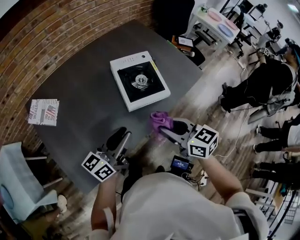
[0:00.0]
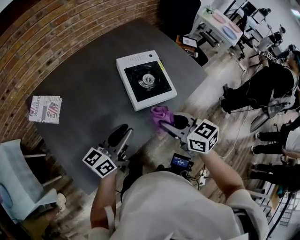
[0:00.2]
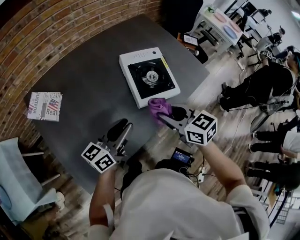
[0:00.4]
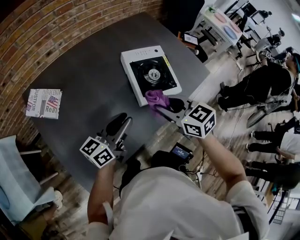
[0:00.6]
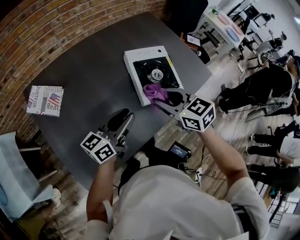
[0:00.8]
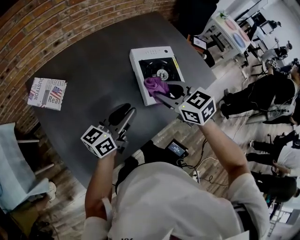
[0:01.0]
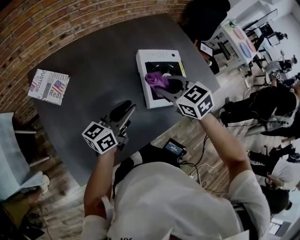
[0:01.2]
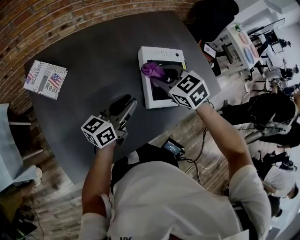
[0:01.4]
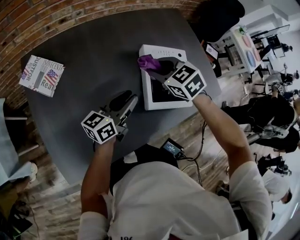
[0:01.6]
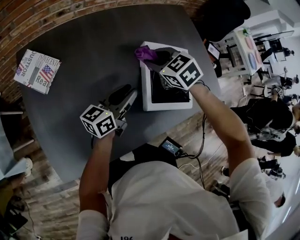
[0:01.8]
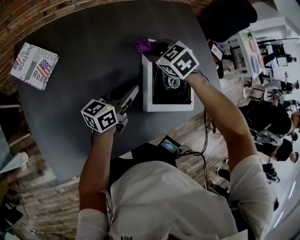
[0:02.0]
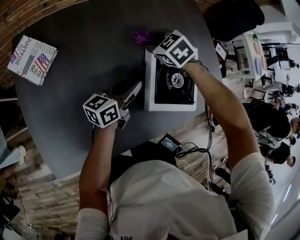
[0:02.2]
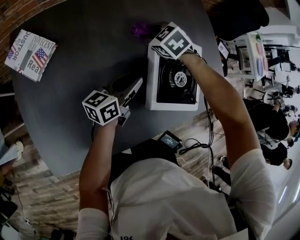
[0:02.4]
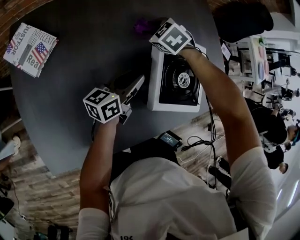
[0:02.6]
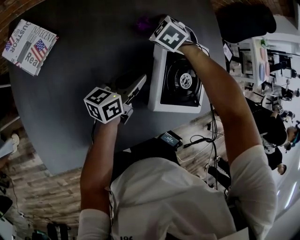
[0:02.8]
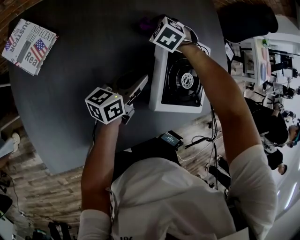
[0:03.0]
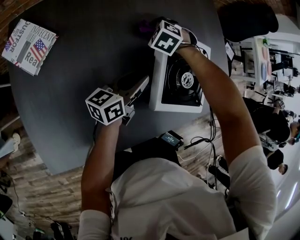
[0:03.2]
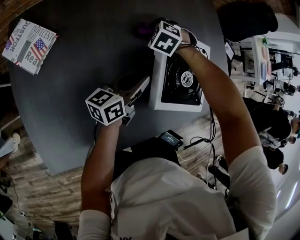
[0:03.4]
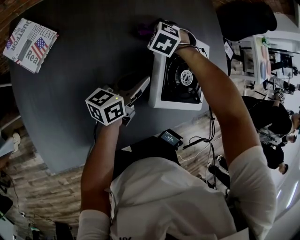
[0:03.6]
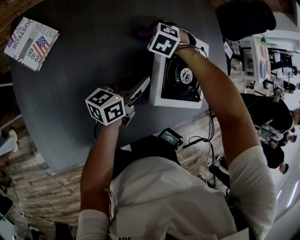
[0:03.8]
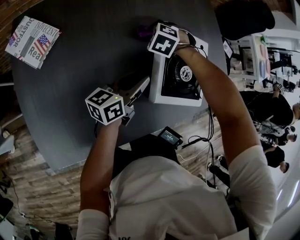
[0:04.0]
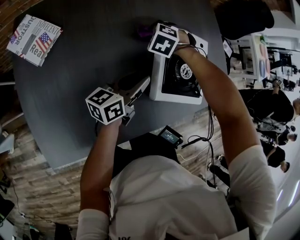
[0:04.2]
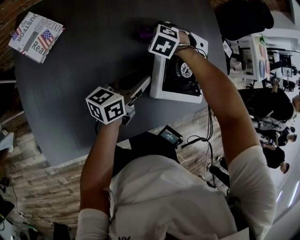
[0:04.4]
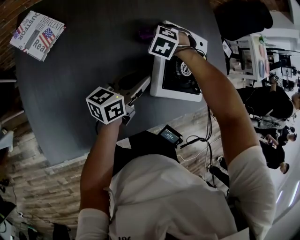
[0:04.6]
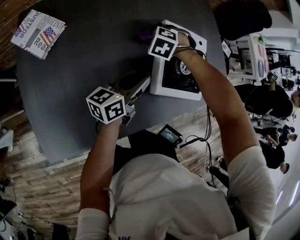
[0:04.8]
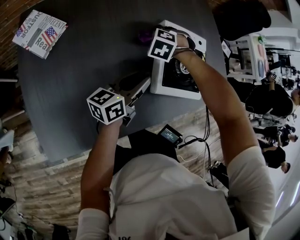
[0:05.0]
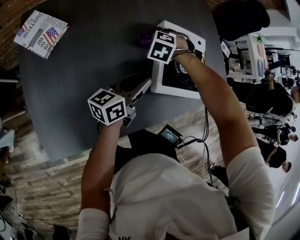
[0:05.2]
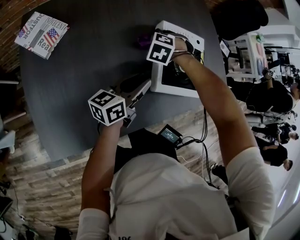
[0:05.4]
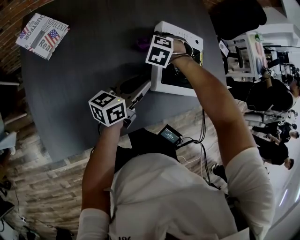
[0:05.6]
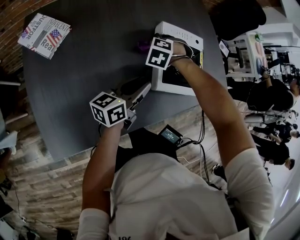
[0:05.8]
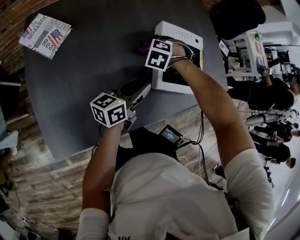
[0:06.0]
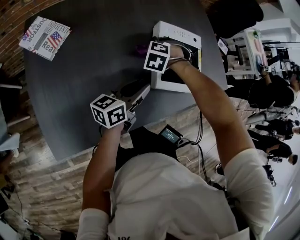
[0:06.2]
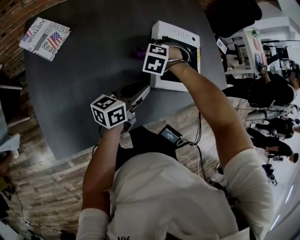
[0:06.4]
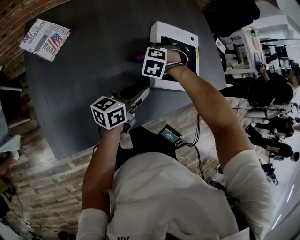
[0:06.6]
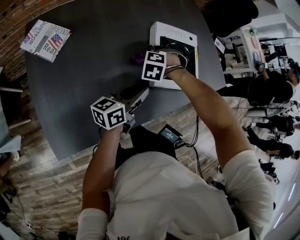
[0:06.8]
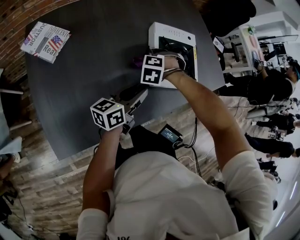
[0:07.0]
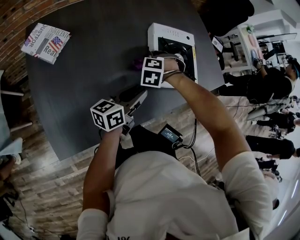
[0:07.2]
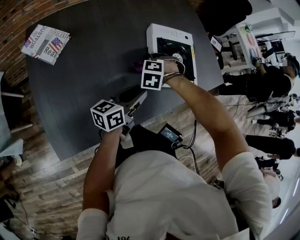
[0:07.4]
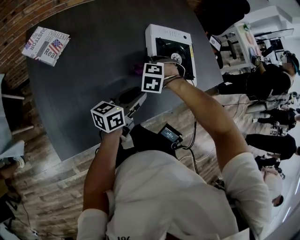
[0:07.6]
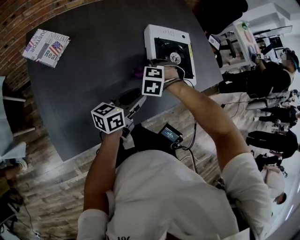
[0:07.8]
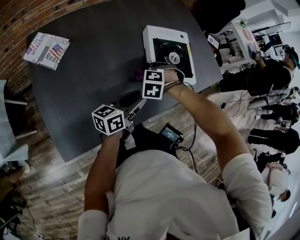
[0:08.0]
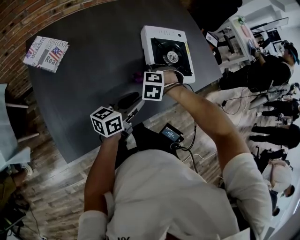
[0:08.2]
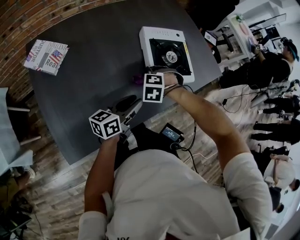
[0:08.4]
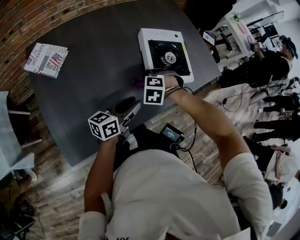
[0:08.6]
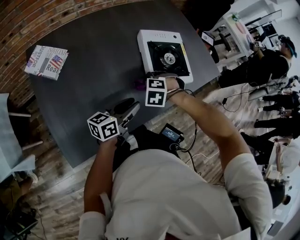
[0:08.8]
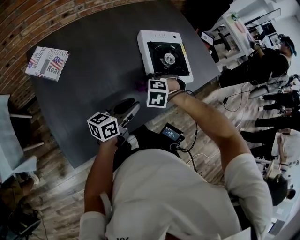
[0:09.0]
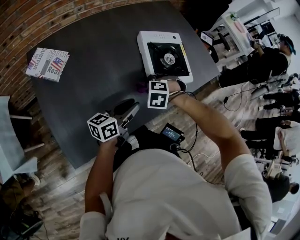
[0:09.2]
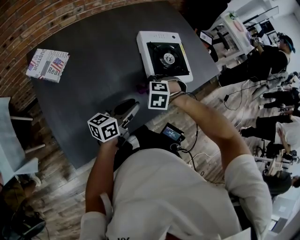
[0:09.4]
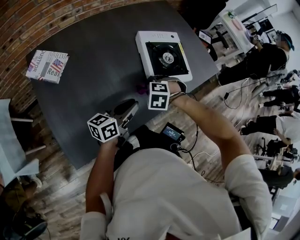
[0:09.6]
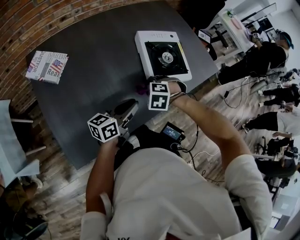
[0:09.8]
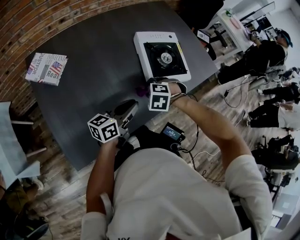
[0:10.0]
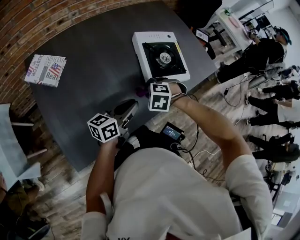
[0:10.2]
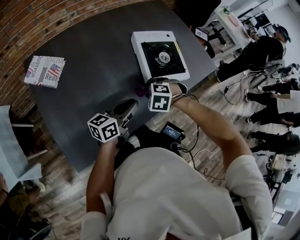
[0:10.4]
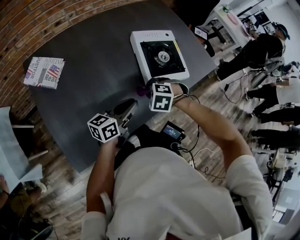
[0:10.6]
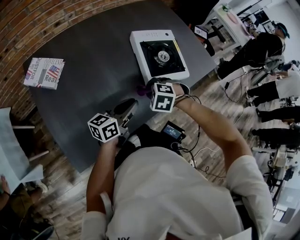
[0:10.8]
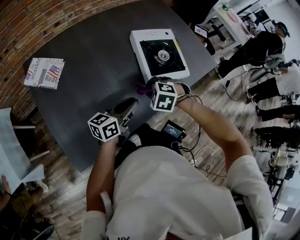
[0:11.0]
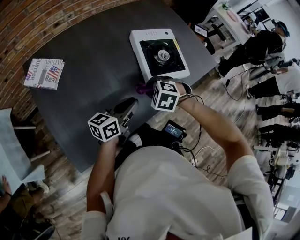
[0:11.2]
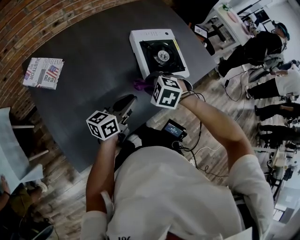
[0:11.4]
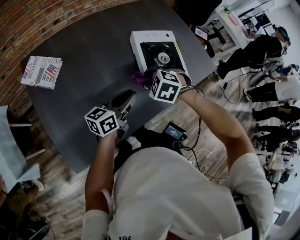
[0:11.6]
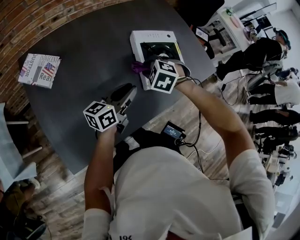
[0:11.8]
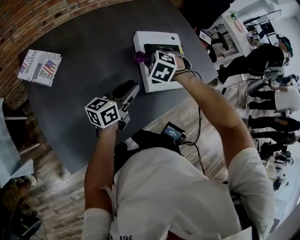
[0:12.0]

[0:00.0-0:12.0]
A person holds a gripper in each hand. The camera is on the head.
0:00.0 to 0:01.6: The right gripper travels forward and to the left by some 30 cm, and turns by some 50 degrees. The left gripper shifts approximately 20 cm forward and downward.
0:01.6 to 0:03.0: The right gripper is displaced downward and forward by some 25 cm, and swivels about 40 degrees; the left gripper heads downward and forward, covering roughly 10 cm.
0:03.0 to 0:04.4: The right gripper travels backward by some 5 cm. Meanwhile the left gripper shifts by roughly 5 cm.
0:04.4 to 0:06.0: Both grippers move backward, some 5 cm.
0:06.0 to 0:07.6: The right gripper moves backward and to the right, approximately 10 cm, while the left gripper moves about 5 cm.
0:07.6 to 0:09.0: The right gripper shifts by approximately 10 cm.
0:09.0 to 0:10.4: The grippers move only a little.
0:10.4 to 0:12.0: The right gripper moves some 15 cm, while the left gripper changes place by about 10 cm.

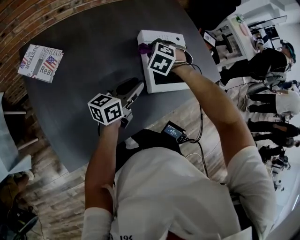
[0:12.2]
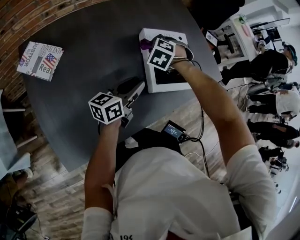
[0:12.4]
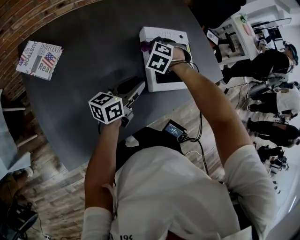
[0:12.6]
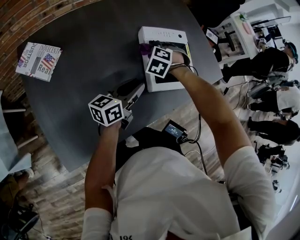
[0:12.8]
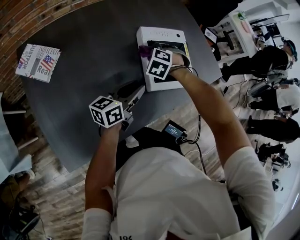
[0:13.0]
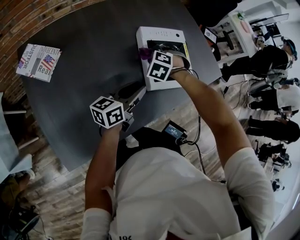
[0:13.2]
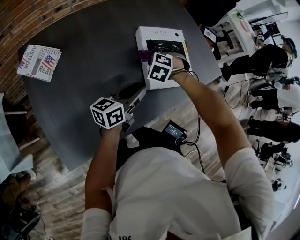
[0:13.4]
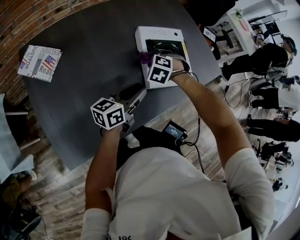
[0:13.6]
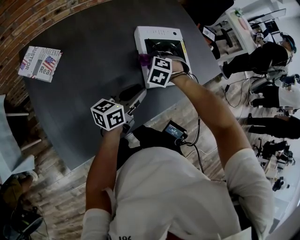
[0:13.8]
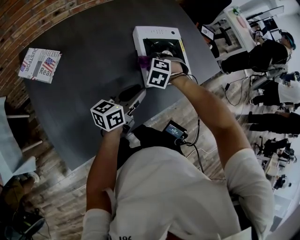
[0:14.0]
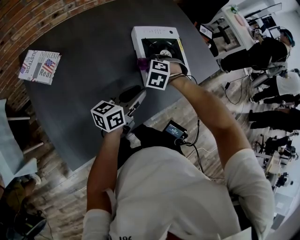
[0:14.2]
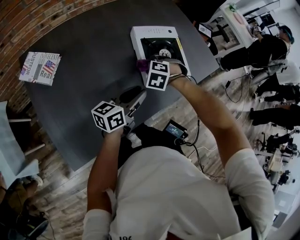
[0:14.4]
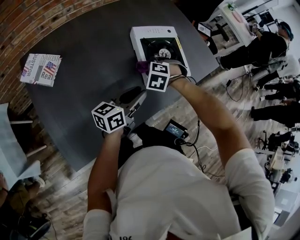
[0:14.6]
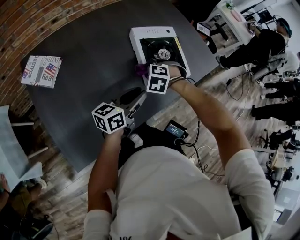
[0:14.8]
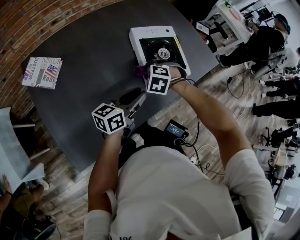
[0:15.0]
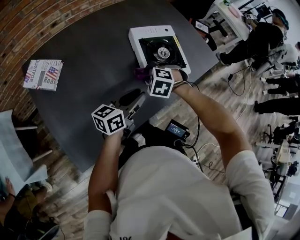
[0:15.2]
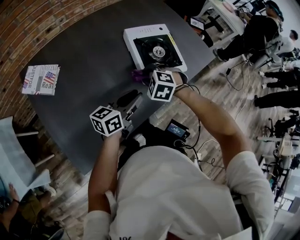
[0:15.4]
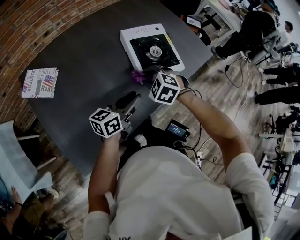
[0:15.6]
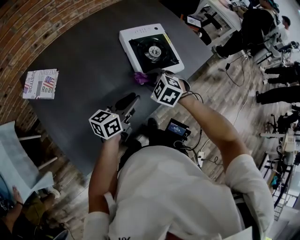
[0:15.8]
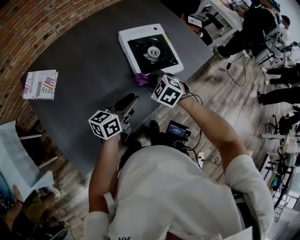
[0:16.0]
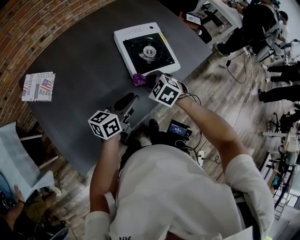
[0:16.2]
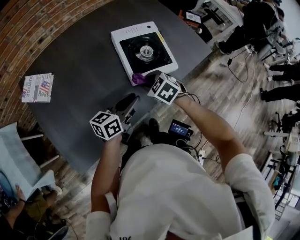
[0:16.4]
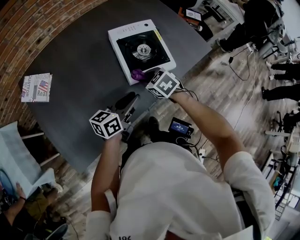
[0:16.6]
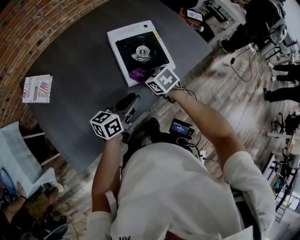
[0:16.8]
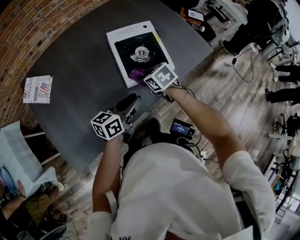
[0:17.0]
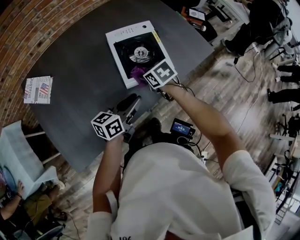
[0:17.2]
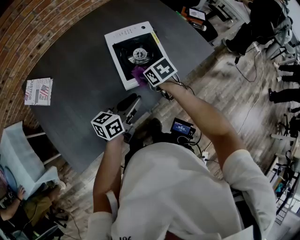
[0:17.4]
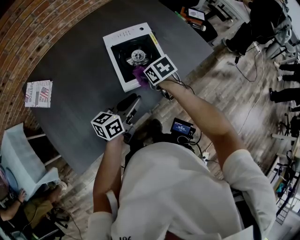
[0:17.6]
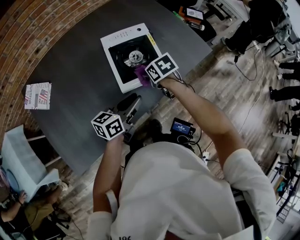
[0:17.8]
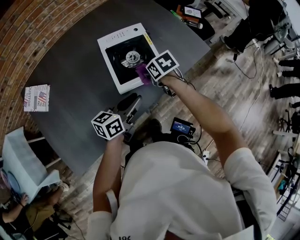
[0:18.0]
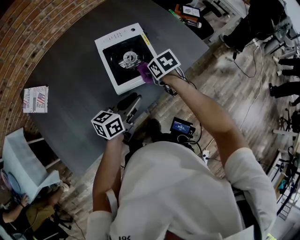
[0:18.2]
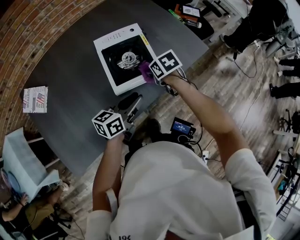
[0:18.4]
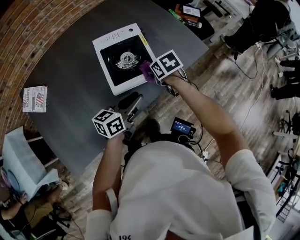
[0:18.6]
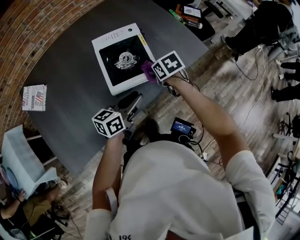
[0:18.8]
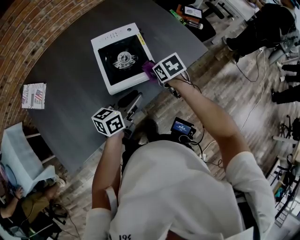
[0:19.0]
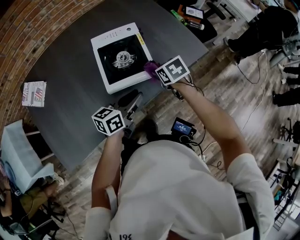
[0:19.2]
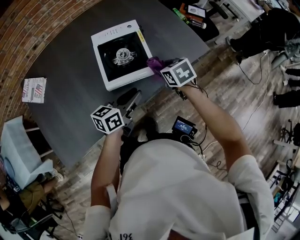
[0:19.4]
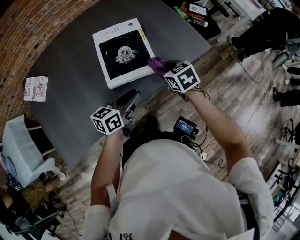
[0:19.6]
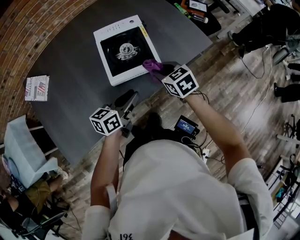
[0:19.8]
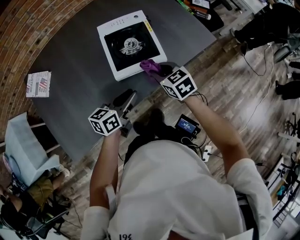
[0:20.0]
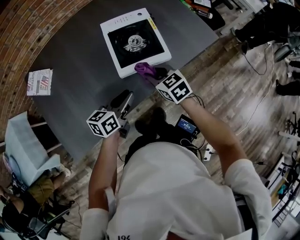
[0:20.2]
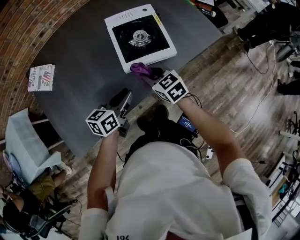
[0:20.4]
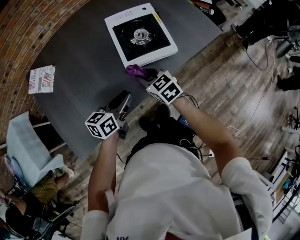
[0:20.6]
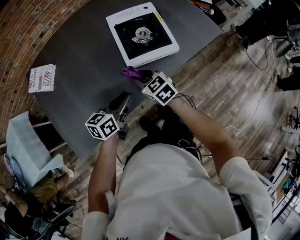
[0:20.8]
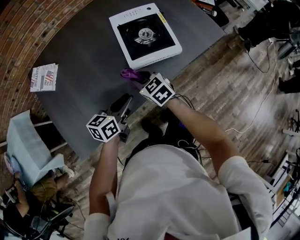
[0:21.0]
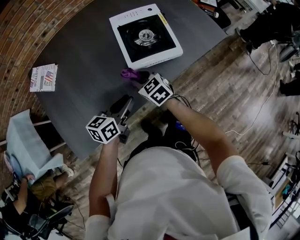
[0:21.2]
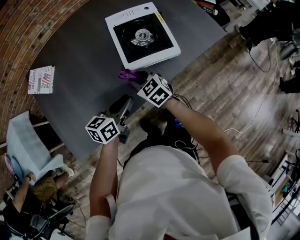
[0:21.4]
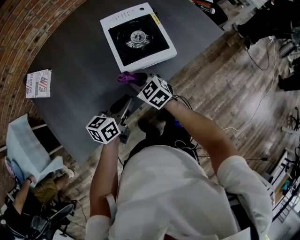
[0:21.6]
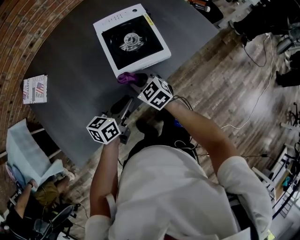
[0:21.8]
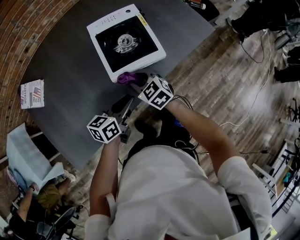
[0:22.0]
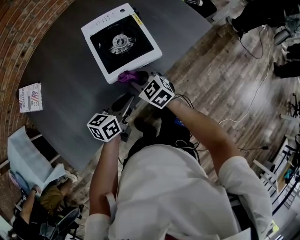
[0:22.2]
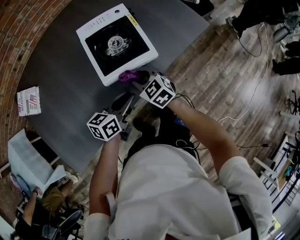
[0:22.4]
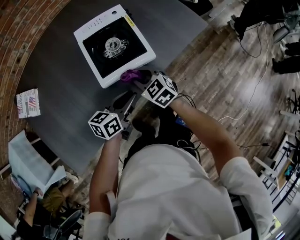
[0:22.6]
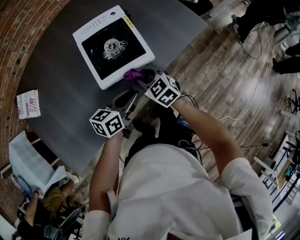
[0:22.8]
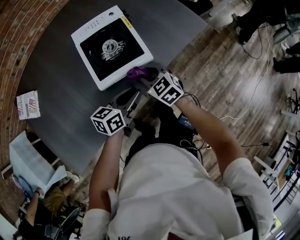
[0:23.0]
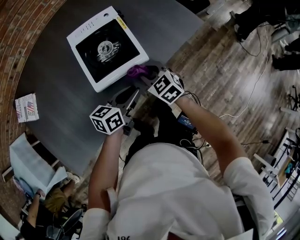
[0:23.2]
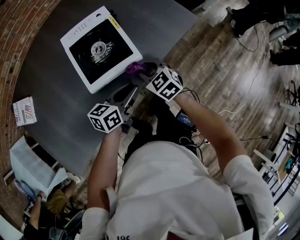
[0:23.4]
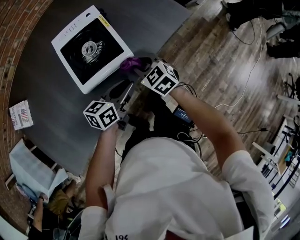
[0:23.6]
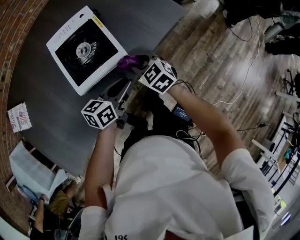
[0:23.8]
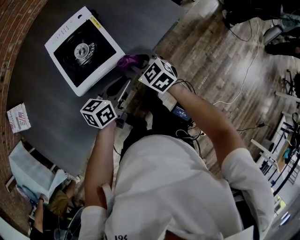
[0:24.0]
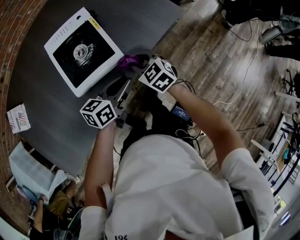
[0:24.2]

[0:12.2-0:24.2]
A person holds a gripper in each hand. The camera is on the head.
0:12.2 to 0:13.8: The right gripper changes place by some 10 cm. The left gripper shifts by approximately 5 cm.
0:13.8 to 0:15.2: The right gripper heads backward, covering roughly 10 cm.
0:15.2 to 0:16.6: Both grippers move to the right, approximately 10 cm. The right gripper changes its angle by approximately 40 degrees.
0:16.6 to 0:18.2: The right gripper shifts about 15 cm to the right and forward, and changes its angle by roughly 30 degrees; the left gripper moves to the right, some 10 cm.
0:18.2 to 0:19.8: The right gripper shifts by roughly 10 cm, and turns by some 30 degrees.
0:19.8 to 0:21.2: The right gripper travels to the left by about 20 cm, while the left gripper shifts about 15 cm to the left and backward.
0:21.2 to 0:22.6: The left gripper goes about 15 cm to the right and forward, while the right gripper moves to the right, roughly 15 cm.
0:22.6 to 0:24.2: The two grippers go approximately 10 cm to the right and forward.
